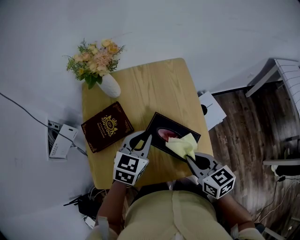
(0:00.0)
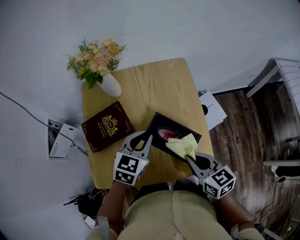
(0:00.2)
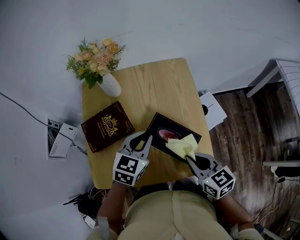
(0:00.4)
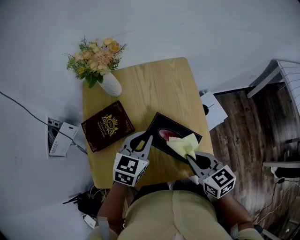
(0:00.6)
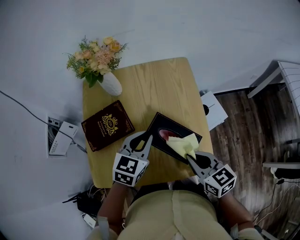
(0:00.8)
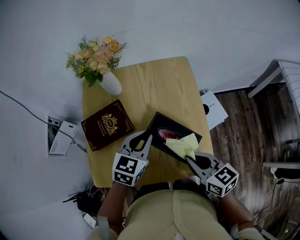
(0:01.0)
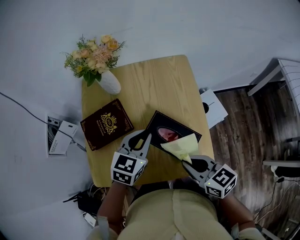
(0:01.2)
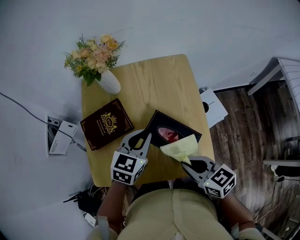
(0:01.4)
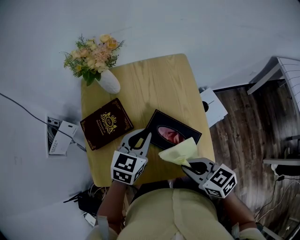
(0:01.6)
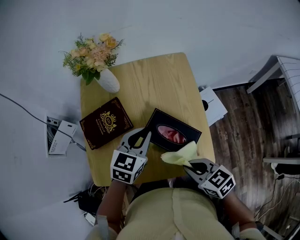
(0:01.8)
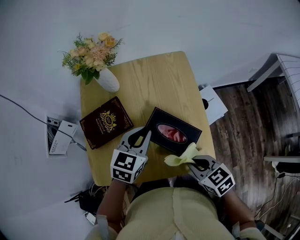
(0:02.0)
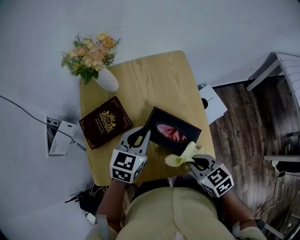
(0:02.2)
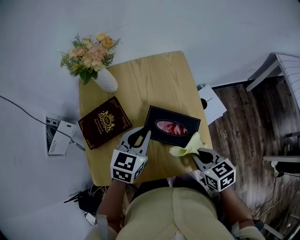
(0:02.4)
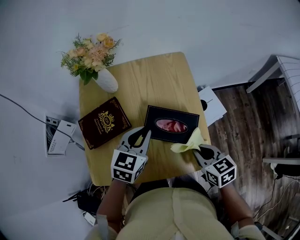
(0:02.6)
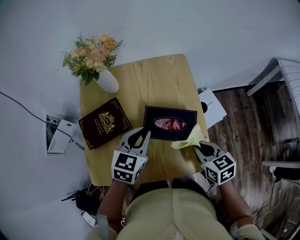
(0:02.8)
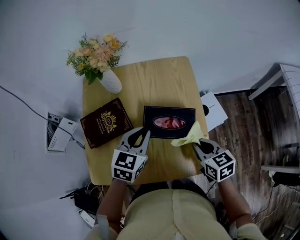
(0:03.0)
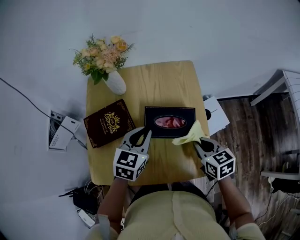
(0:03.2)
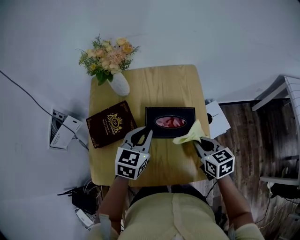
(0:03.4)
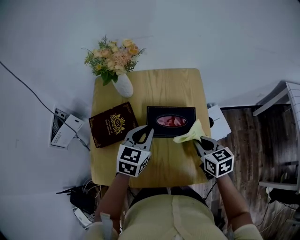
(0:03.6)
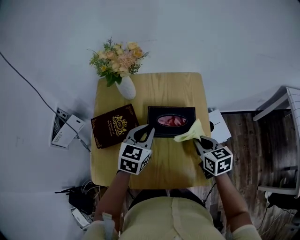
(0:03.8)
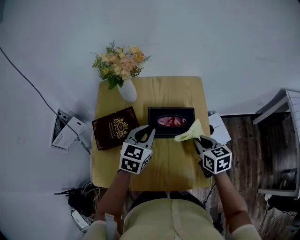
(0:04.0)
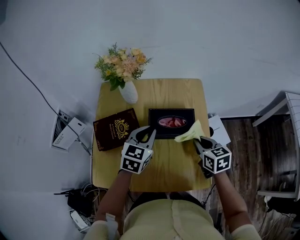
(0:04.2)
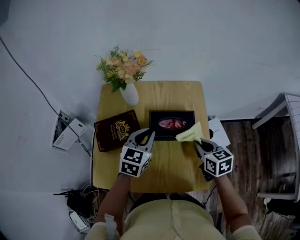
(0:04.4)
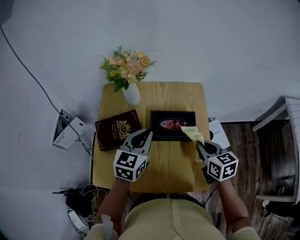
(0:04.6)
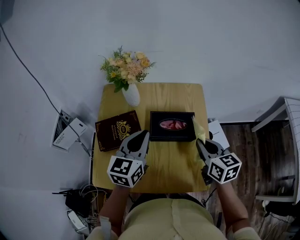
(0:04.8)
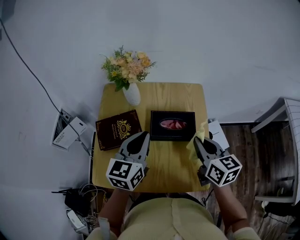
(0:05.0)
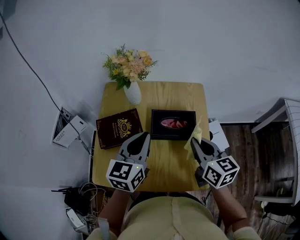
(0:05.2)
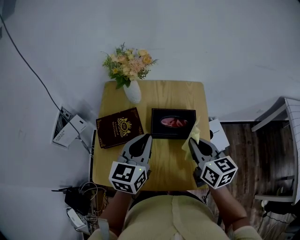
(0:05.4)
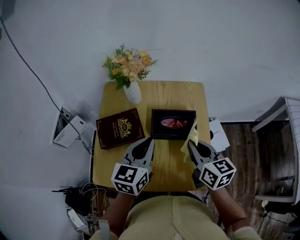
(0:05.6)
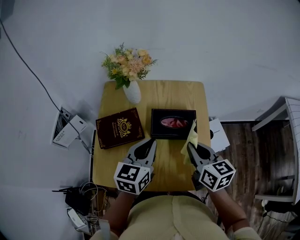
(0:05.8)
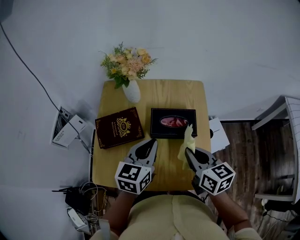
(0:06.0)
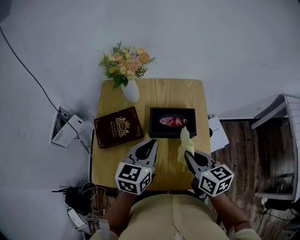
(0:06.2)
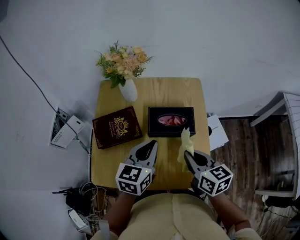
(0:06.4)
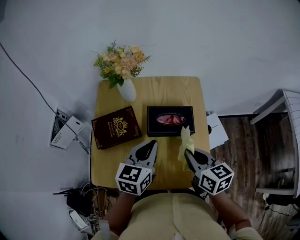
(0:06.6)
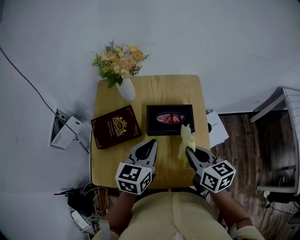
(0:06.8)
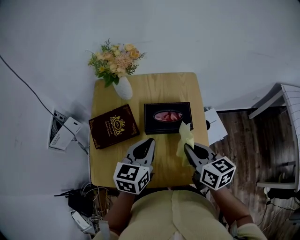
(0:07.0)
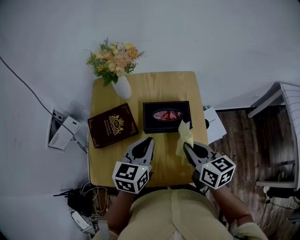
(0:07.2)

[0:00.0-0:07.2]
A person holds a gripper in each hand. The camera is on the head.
0:00.0 to 0:01.4: The grippers move only a little.
0:01.4 to 0:02.8: The right gripper moves to the right and forward, approximately 10 cm.
0:02.8 to 0:04.4: The left gripper goes about 5 cm forward. Meanwhile the right gripper shifts roughly 10 cm forward.
0:04.4 to 0:05.8: The left gripper travels backward by some 5 cm. Meanwhile the right gripper travels upward by some 10 cm.
0:05.8 to 0:07.2: The grippers make only small movements.

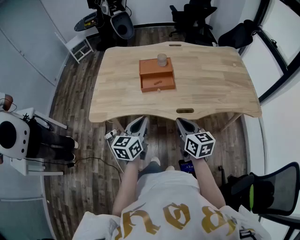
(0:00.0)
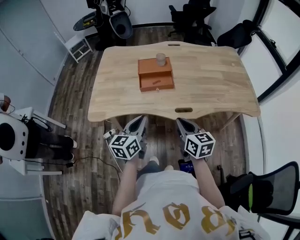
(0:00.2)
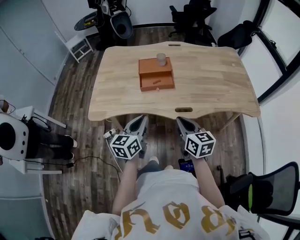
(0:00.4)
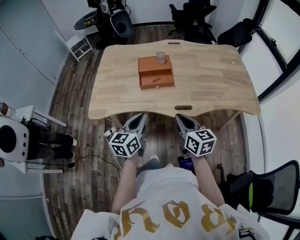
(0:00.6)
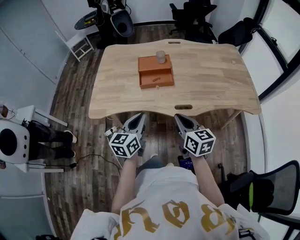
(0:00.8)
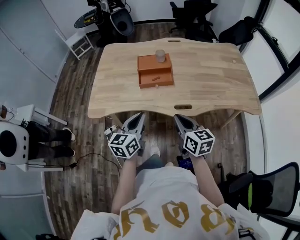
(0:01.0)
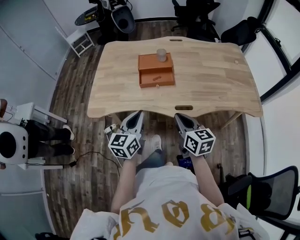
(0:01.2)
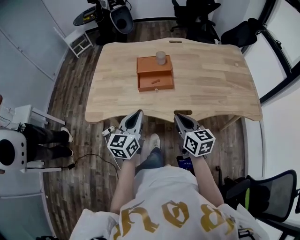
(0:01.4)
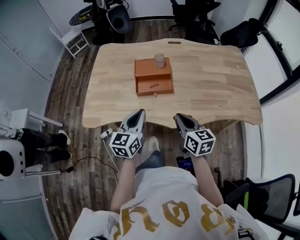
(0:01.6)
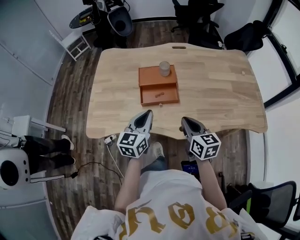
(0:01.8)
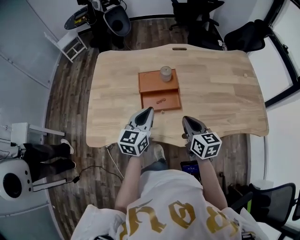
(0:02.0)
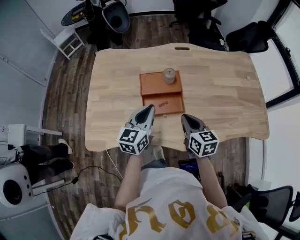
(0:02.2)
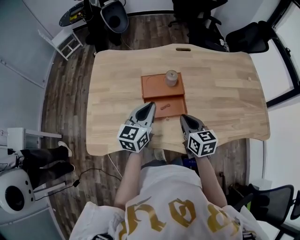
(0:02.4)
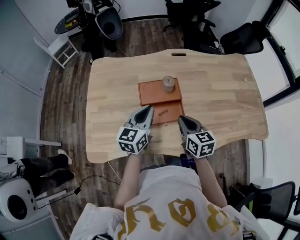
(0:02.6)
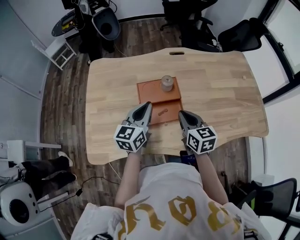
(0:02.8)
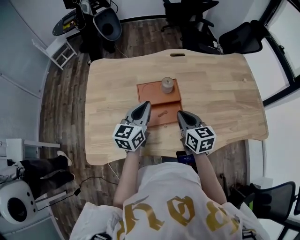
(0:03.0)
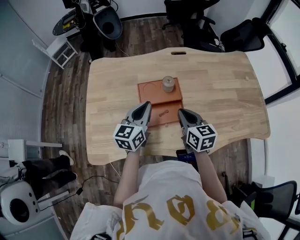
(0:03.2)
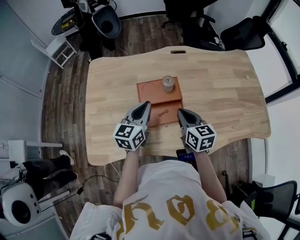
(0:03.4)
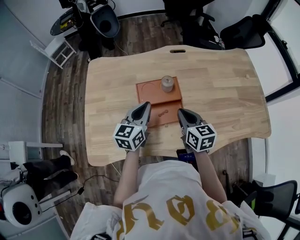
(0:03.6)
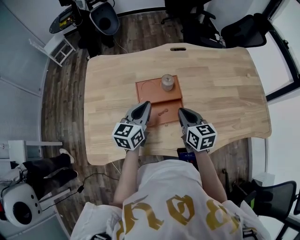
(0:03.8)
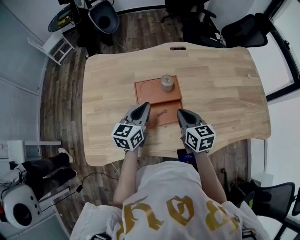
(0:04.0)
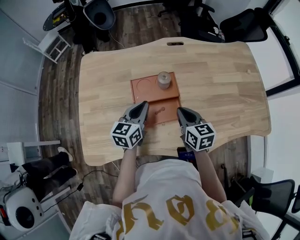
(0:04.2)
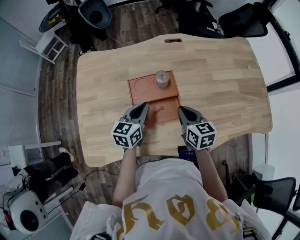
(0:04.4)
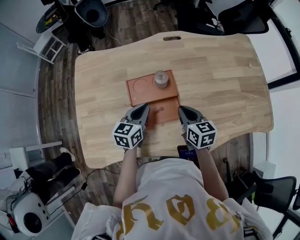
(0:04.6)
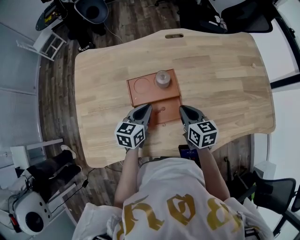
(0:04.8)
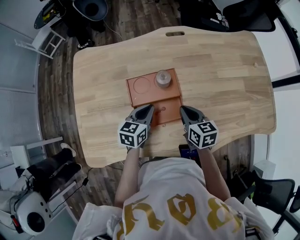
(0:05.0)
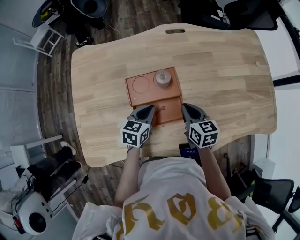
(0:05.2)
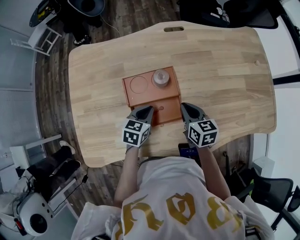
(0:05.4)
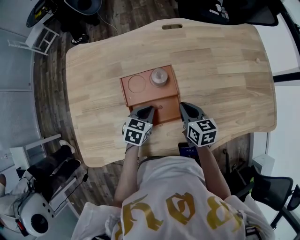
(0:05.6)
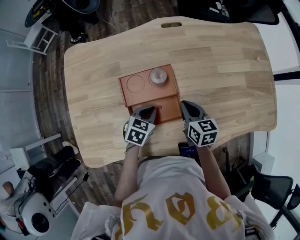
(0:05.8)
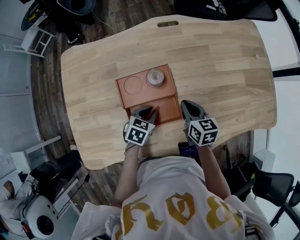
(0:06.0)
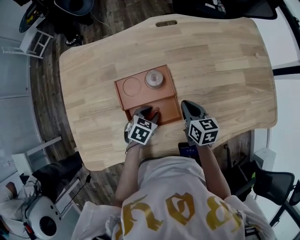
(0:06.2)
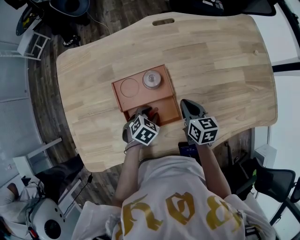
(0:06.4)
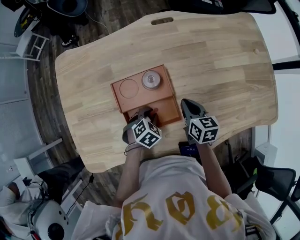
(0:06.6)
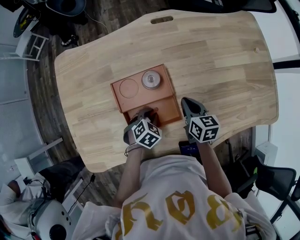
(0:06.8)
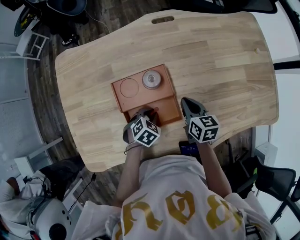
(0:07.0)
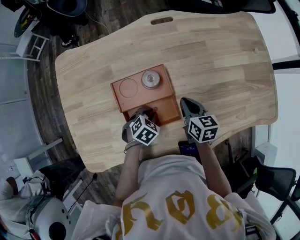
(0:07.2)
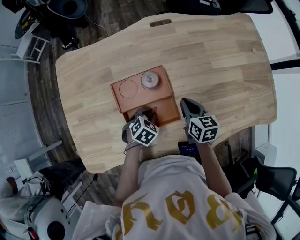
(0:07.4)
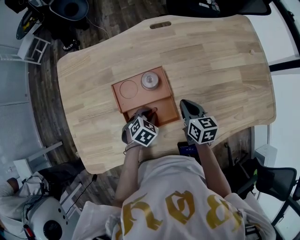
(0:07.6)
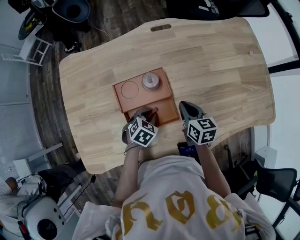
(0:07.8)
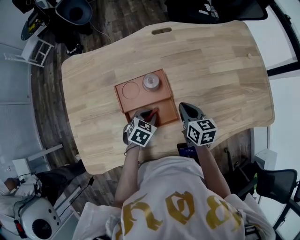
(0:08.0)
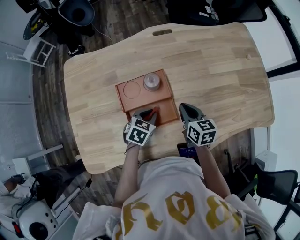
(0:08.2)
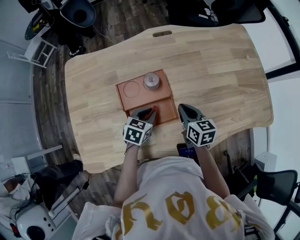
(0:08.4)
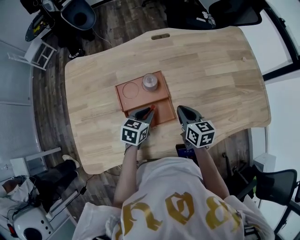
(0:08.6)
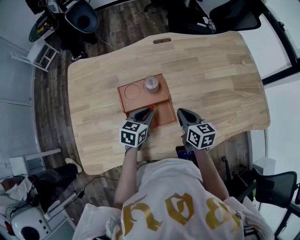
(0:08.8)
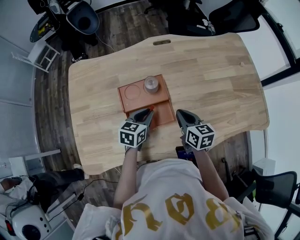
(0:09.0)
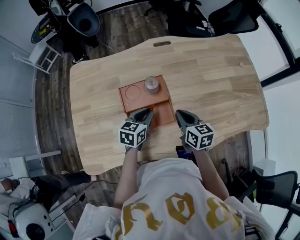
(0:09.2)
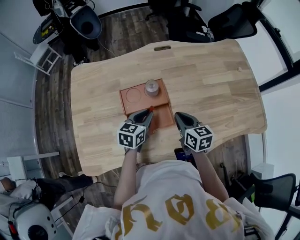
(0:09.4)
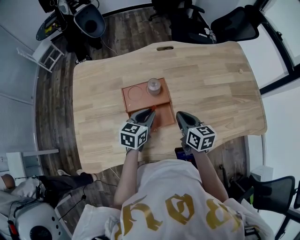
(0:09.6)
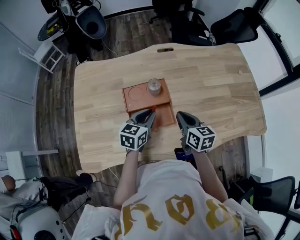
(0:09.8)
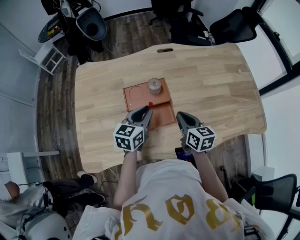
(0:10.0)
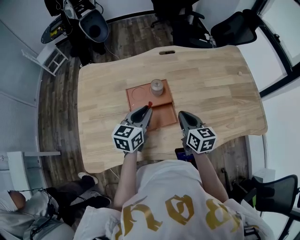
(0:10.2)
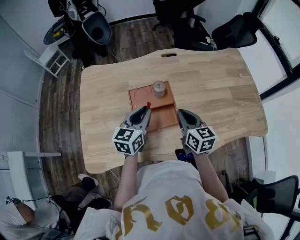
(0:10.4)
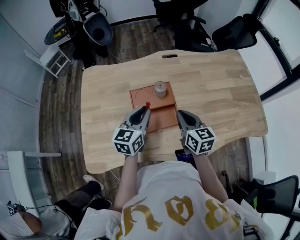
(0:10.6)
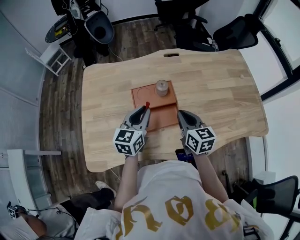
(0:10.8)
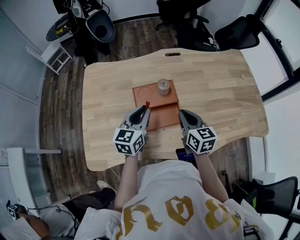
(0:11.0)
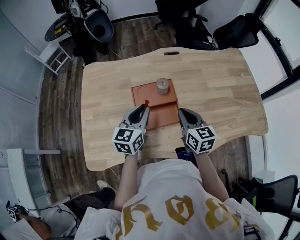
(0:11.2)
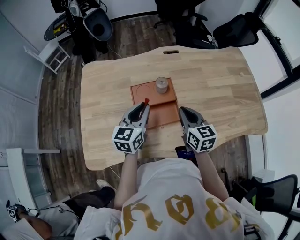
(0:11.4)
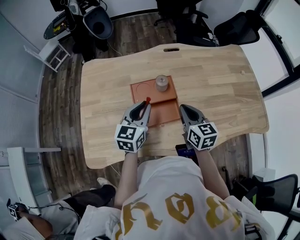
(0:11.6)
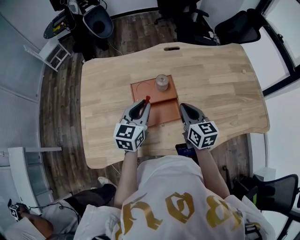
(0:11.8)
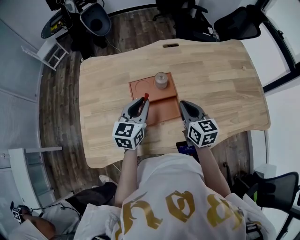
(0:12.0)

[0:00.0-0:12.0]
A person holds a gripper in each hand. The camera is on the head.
0:00.0 to 0:01.6: Both grippers move forward, approximately 10 cm.
0:01.6 to 0:03.0: The two grippers go some 25 cm forward.
0:03.0 to 0:04.4: The right gripper is displaced downward by about 5 cm. Meanwhile the left gripper moves downward, approximately 10 cm.
0:04.4 to 0:06.0: The right gripper heads downward and forward, covering some 10 cm, while the left gripper travels downward by approximately 15 cm, and tilts its fingers roughly 30 degrees downward.
0:07.6 to 0:09.0: The right gripper moves upward and backward, roughly 10 cm. Meanwhile the left gripper travels upward by some 10 cm, and turns by about 40 degrees.
0:09.0 to 0:10.4: The two grippers go about 10 cm upward. The left gripper turns by some 20 degrees.
0:10.4 to 0:12.0: There are only small adjustments of the grippers.

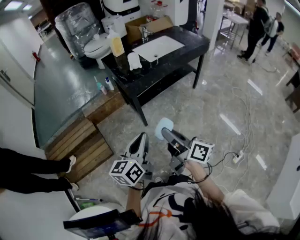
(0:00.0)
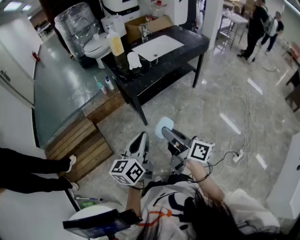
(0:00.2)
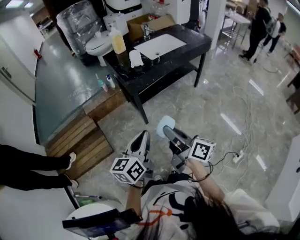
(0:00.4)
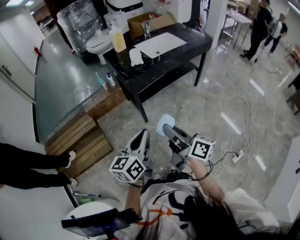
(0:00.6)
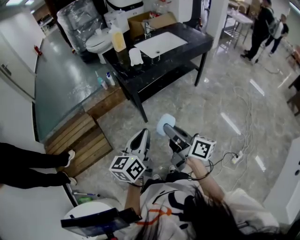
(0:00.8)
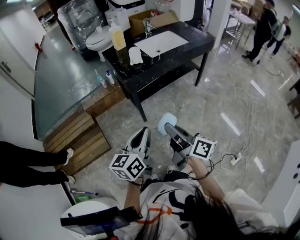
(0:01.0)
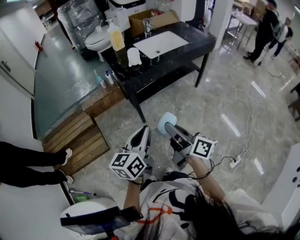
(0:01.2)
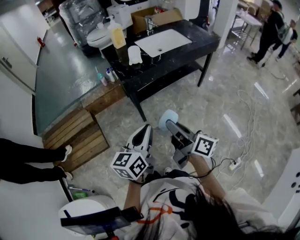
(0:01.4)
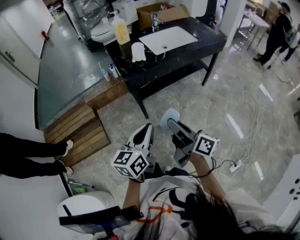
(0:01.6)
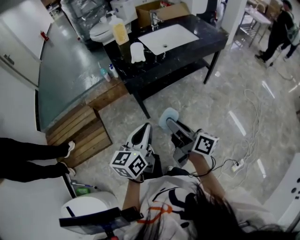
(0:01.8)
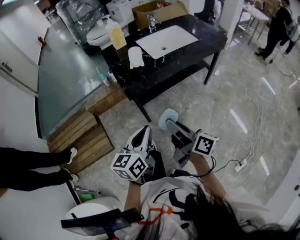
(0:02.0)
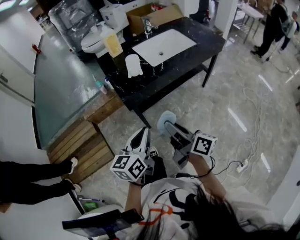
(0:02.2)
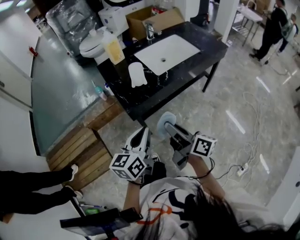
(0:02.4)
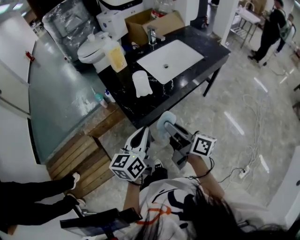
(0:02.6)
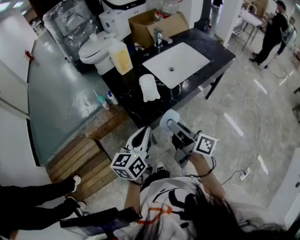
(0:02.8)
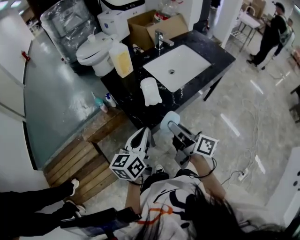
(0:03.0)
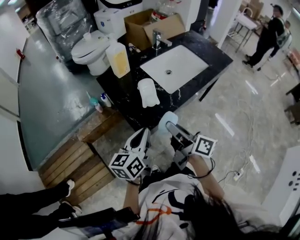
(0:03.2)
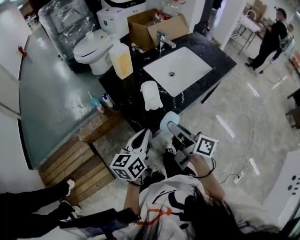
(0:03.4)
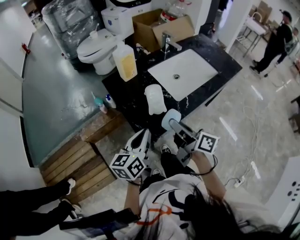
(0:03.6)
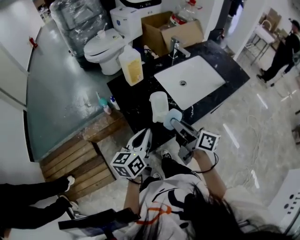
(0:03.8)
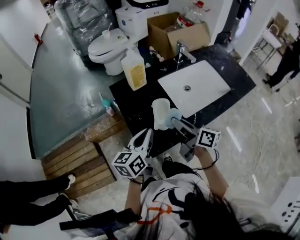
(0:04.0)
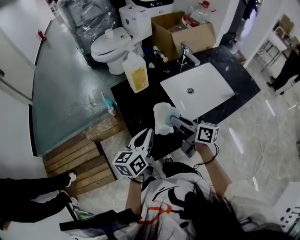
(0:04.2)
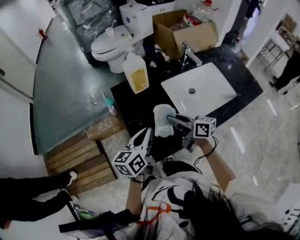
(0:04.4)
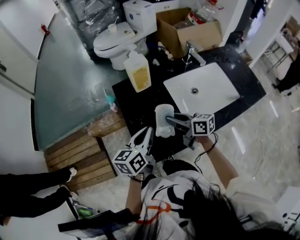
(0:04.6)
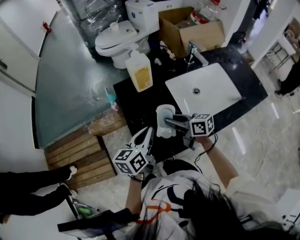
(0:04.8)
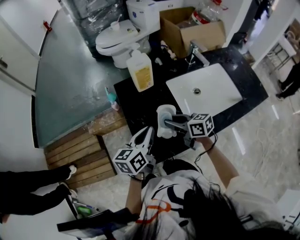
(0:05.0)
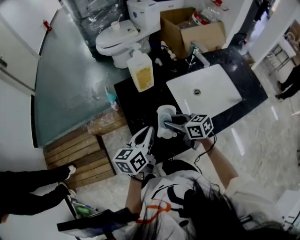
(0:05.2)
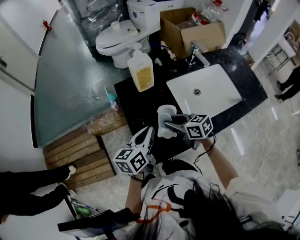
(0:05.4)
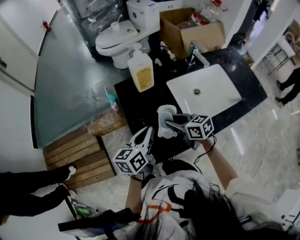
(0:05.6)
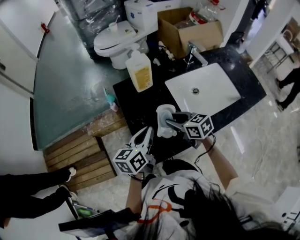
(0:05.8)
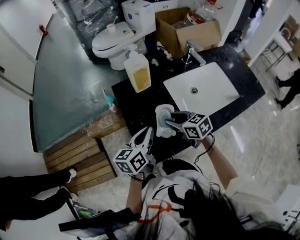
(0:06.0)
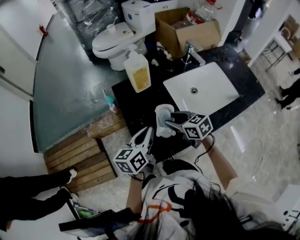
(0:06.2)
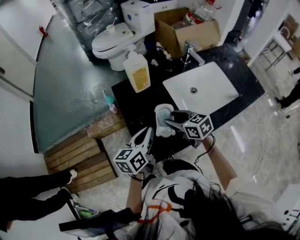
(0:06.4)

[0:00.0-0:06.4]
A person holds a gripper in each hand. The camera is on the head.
0:00.0 to 0:01.6: The grippers both shift forward and to the right by some 10 cm.
0:01.6 to 0:03.2: Both grippers travel together forward, approximately 35 cm.
0:03.2 to 0:04.8: The right gripper changes place by approximately 25 cm, and changes its angle by roughly 40 degrees; the left gripper ends up about 20 cm from where it was.
0:04.8 to 0:06.4: The right gripper turns by about 30 degrees.
